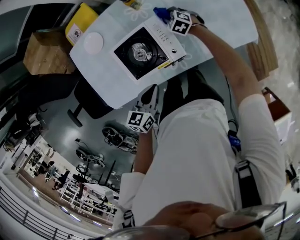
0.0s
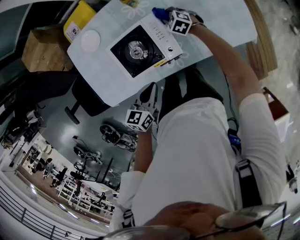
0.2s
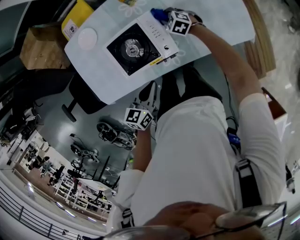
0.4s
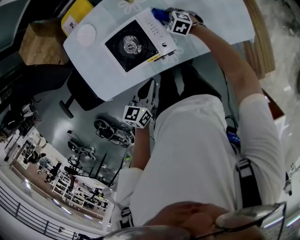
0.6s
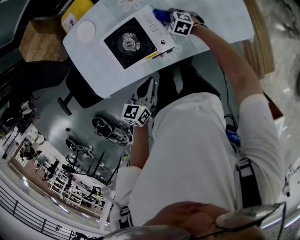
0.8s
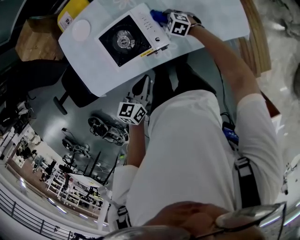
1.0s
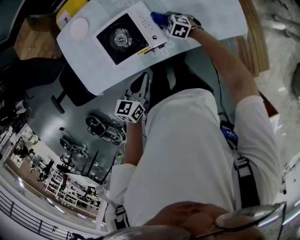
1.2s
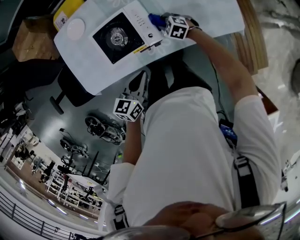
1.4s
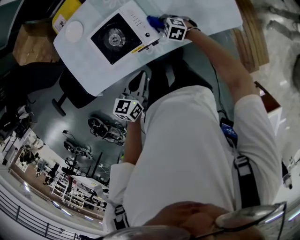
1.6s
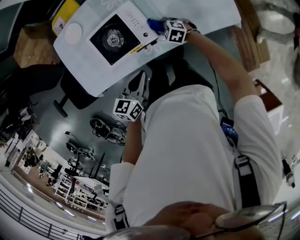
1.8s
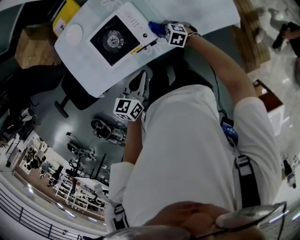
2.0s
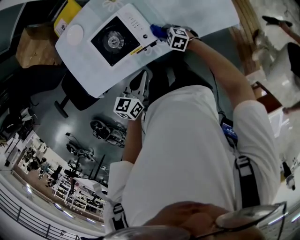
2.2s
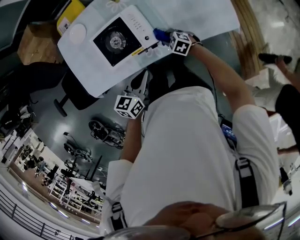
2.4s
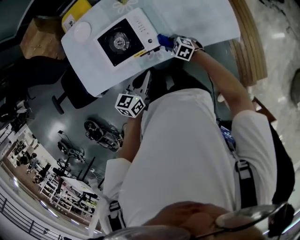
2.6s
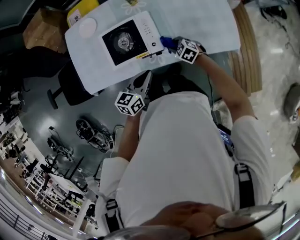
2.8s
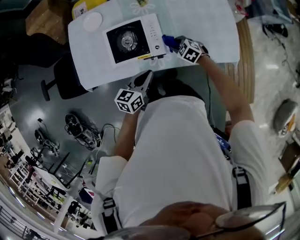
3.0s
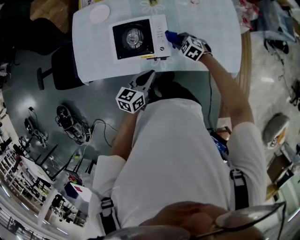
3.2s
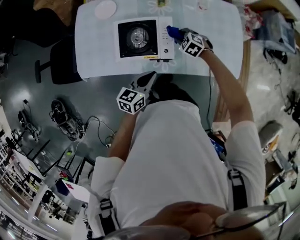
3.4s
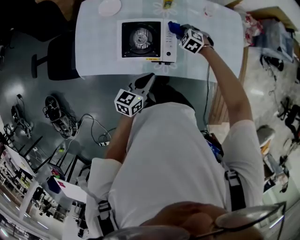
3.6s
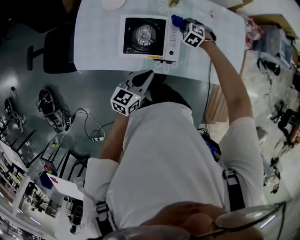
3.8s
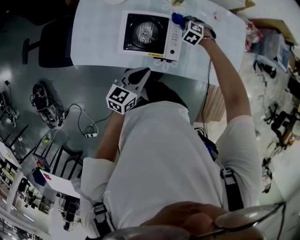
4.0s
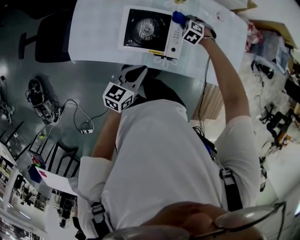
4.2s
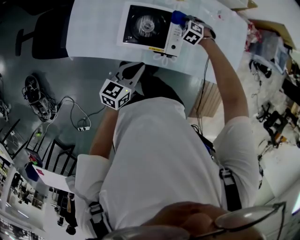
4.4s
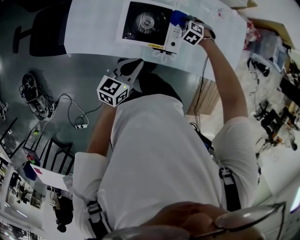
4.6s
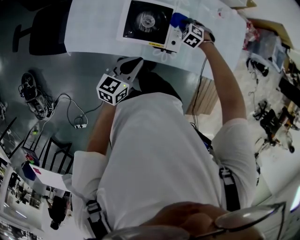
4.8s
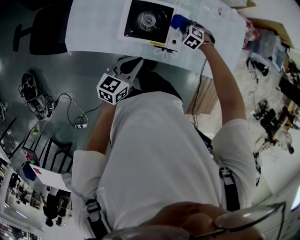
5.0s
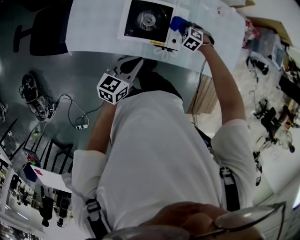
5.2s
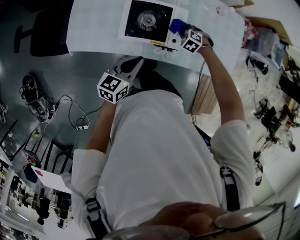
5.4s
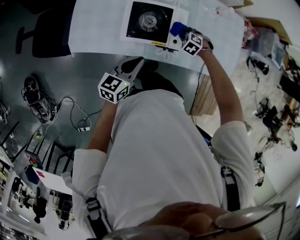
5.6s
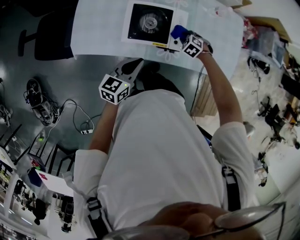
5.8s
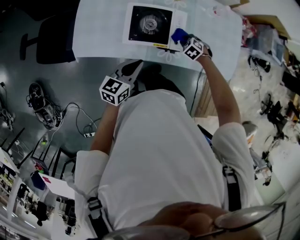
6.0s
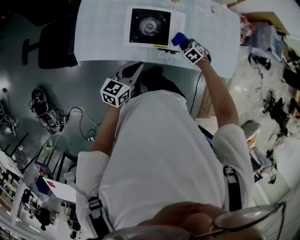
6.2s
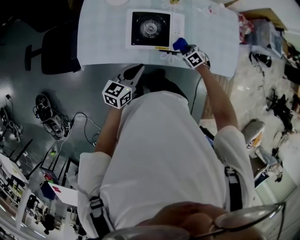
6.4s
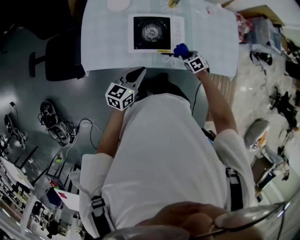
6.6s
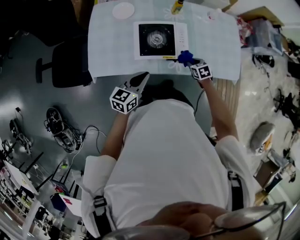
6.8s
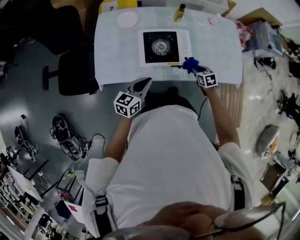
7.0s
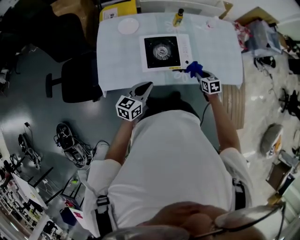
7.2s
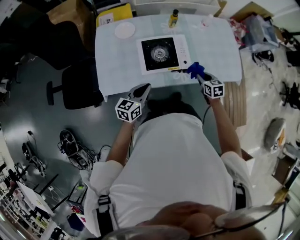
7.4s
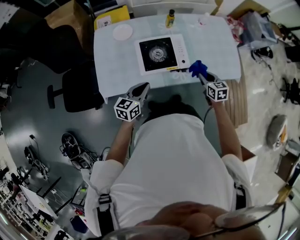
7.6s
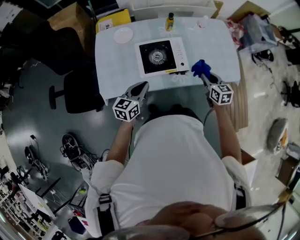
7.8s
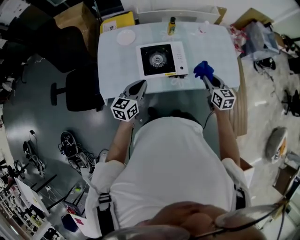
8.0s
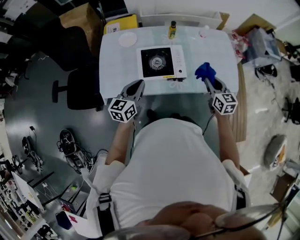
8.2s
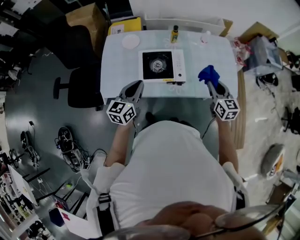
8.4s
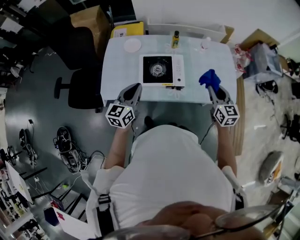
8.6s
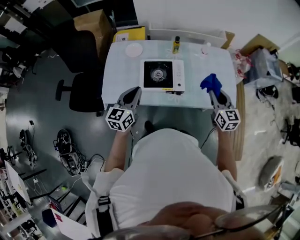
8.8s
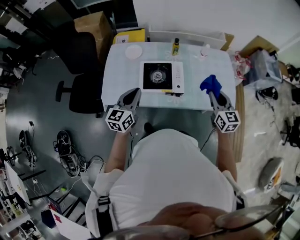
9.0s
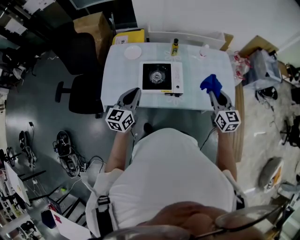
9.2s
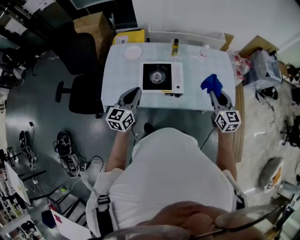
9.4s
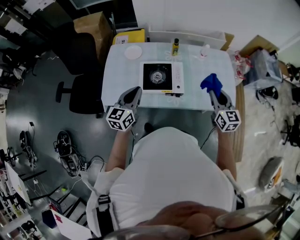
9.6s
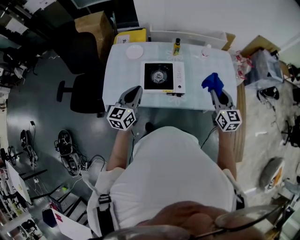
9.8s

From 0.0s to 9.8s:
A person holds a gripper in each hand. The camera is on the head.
From 0.0s to 1.4s: The right gripper moves backward, roughly 15 cm. The left gripper travels to the right by about 5 cm.
From 1.4s to 2.8s: The right gripper heads backward, covering some 10 cm.
From 2.8s to 4.2s: The right gripper heads forward, covering roughly 20 cm, and changes its angle by about 40 degrees. Meanwhile the left gripper goes approximately 10 cm to the left.
From 4.2s to 5.6s: The right gripper shifts by about 10 cm.
From 5.6s to 7.0s: The left gripper shifts by roughly 5 cm; the right gripper shifts by approximately 15 cm, and rolls clockwise, seen from behind, by some 60 degrees.
From 7.0s to 8.4s: The left gripper heads upward, covering about 10 cm, while the right gripper moves upward, about 25 cm, and points its fingers roughly 40 degrees further upward.
From 8.4s to 9.8s: The right gripper travels upward by approximately 5 cm.

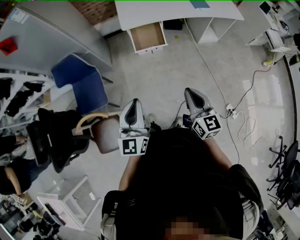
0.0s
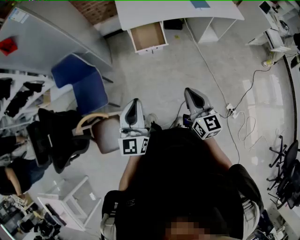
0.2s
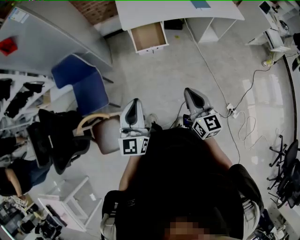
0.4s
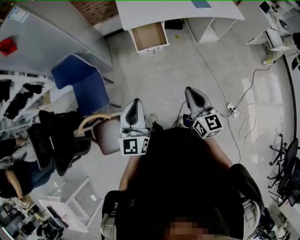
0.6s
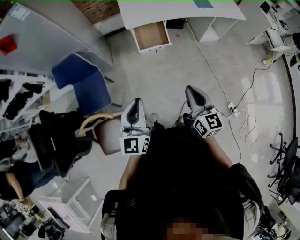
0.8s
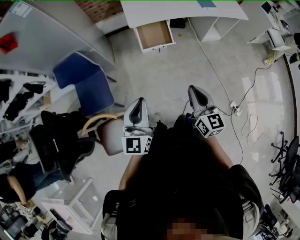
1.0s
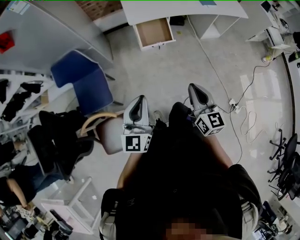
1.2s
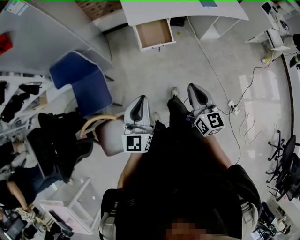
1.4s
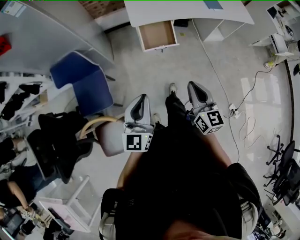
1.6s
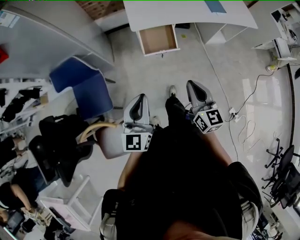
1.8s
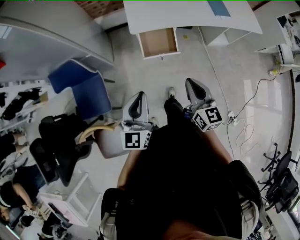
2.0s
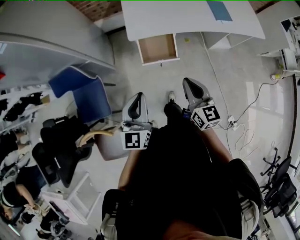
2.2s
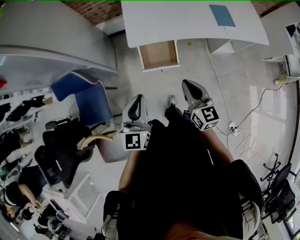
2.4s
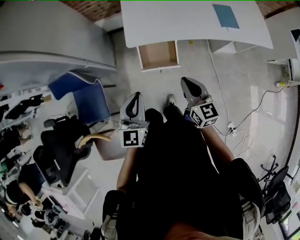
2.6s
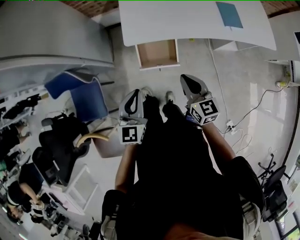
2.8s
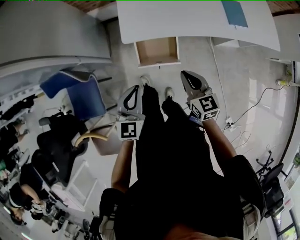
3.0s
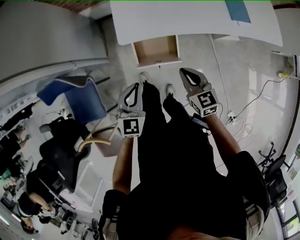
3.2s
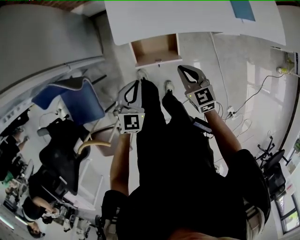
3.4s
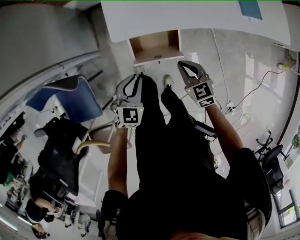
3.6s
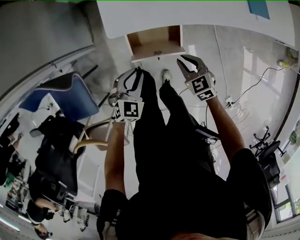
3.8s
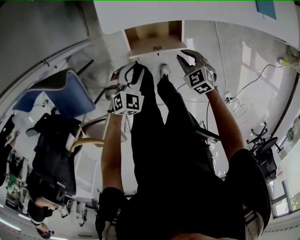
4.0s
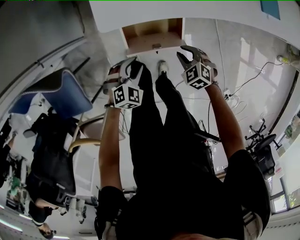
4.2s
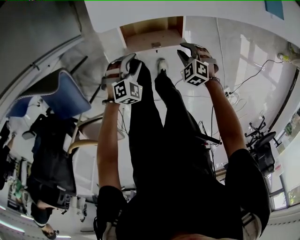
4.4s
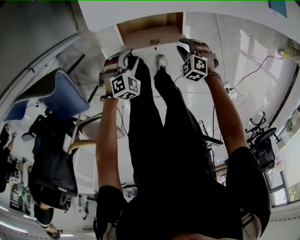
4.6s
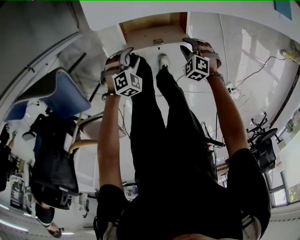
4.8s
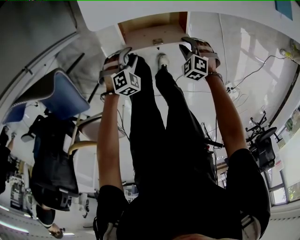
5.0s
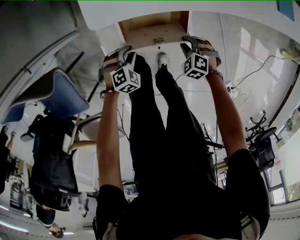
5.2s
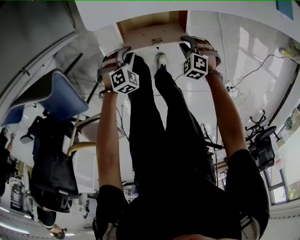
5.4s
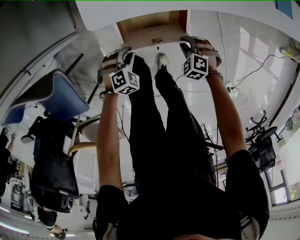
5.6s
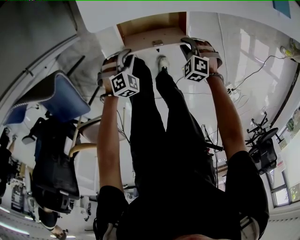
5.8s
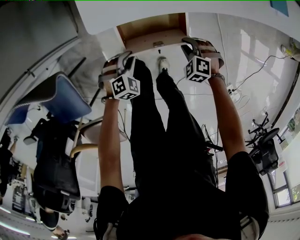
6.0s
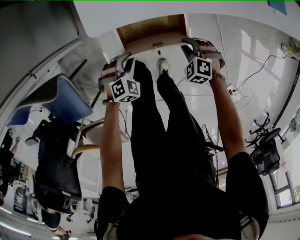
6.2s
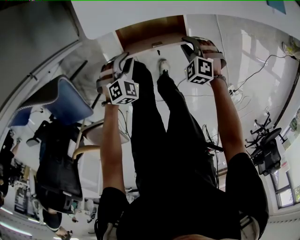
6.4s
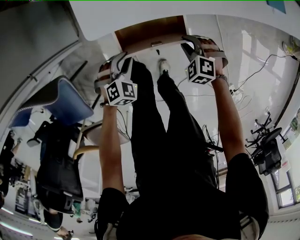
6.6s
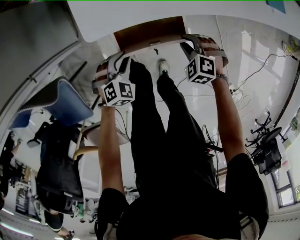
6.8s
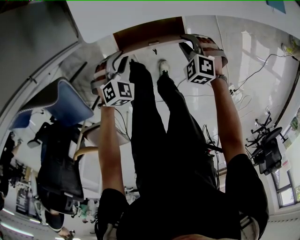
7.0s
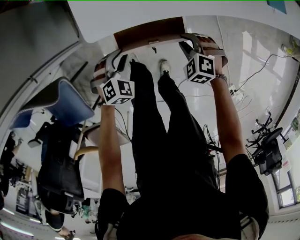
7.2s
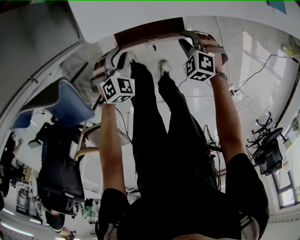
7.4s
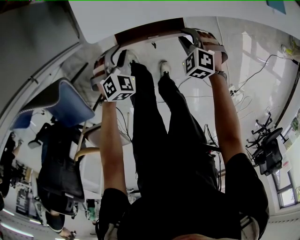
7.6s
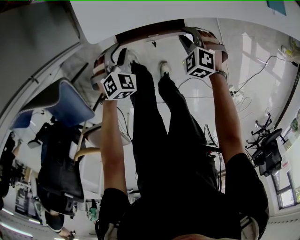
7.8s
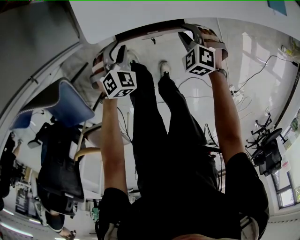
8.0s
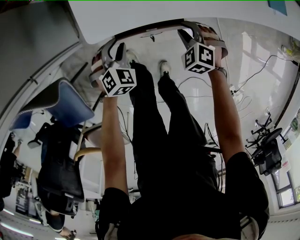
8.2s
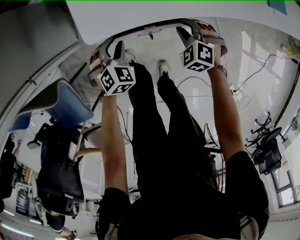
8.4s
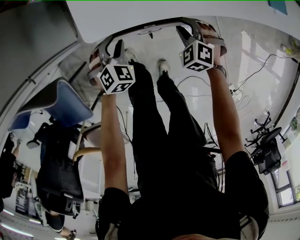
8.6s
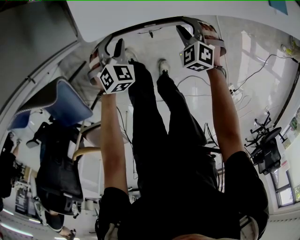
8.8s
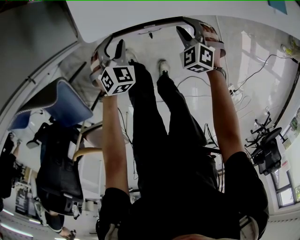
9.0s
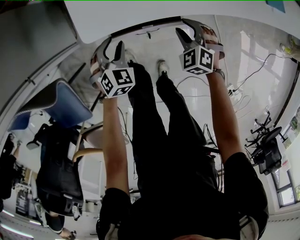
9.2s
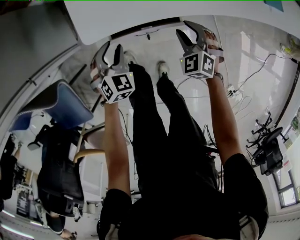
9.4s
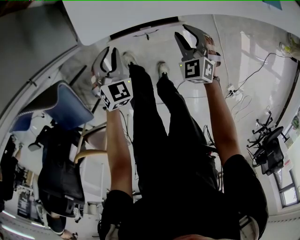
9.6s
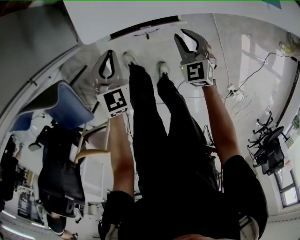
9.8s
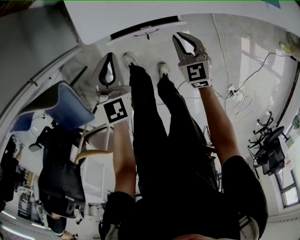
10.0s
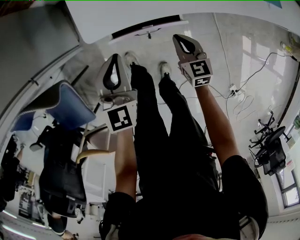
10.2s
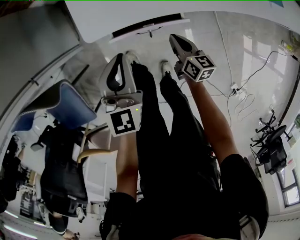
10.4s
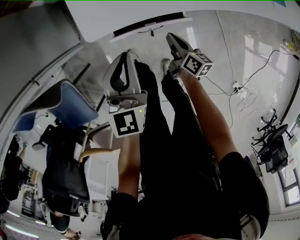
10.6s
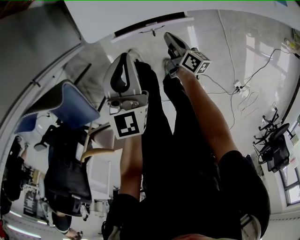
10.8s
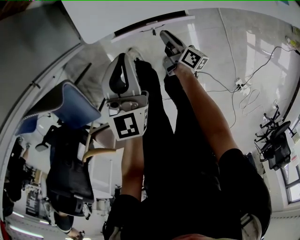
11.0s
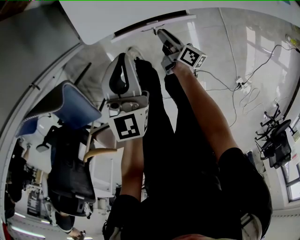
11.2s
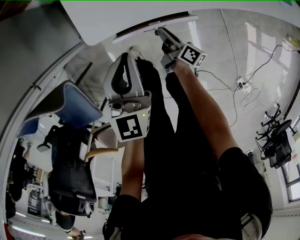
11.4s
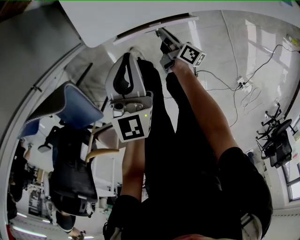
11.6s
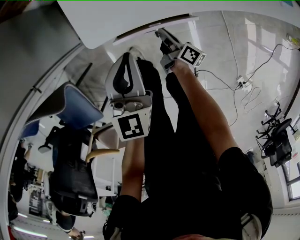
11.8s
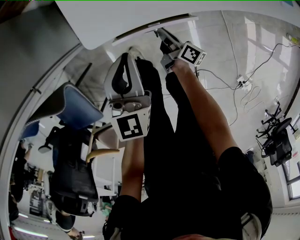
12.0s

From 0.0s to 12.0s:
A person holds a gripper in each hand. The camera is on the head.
From 0.0s to 1.6s: The two grippers go some 10 cm forward and to the left.
From 1.6s to 3.0s: Both grippers move forward, about 30 cm. The right gripper swivels roughly 20 degrees.
From 3.0s to 4.4s: The grippers both shift downward by some 35 cm. The left gripper tips its fingers downward by about 40 degrees, and opens; the right gripper angles its fingers downward, by about 40 degrees, and opens up.
From 6.0s to 7.6s: The two grippers go approximately 10 cm forward and upward.
From 7.6s to 9.0s: The grippers stay close to where they were, moving slightly.
From 9.0s to 10.4s: The left gripper is displaced upward by approximately 15 cm, points its fingers about 30 degrees further upward, and closes. Meanwhile the right gripper changes place by approximately 5 cm, rolls clockwise, seen from behind, by roughly 80 degrees, and closes up.
From 10.4s to 12.0s: The right gripper travels downward and to the left by roughly 10 cm, and rotates roughly 40 degrees.

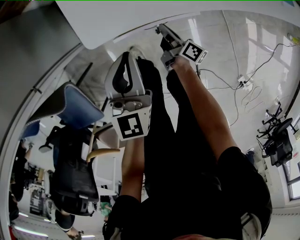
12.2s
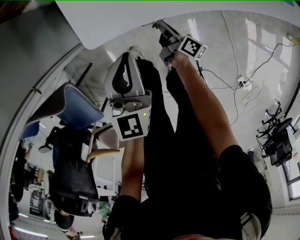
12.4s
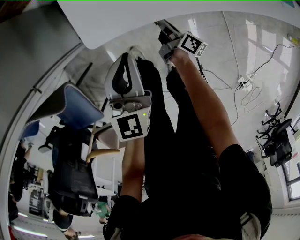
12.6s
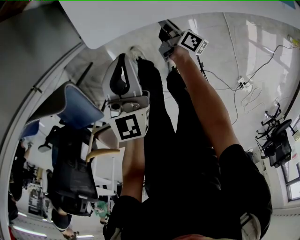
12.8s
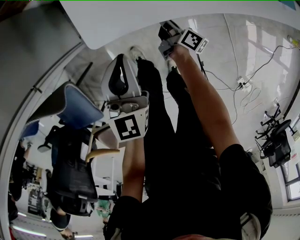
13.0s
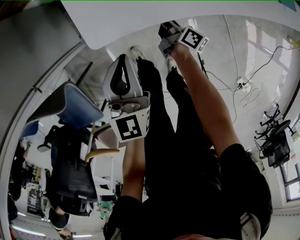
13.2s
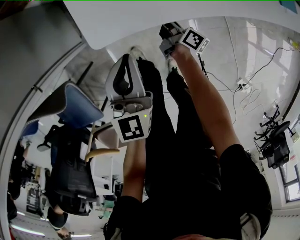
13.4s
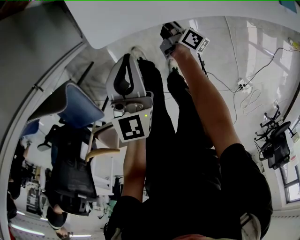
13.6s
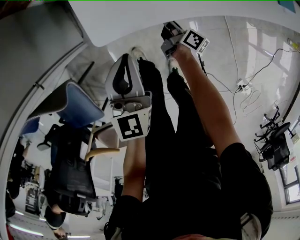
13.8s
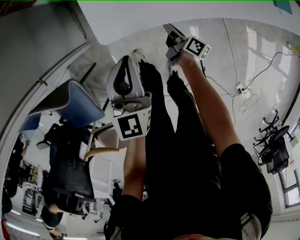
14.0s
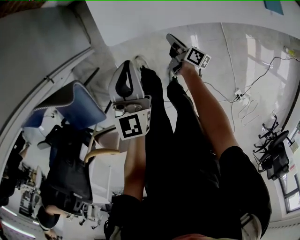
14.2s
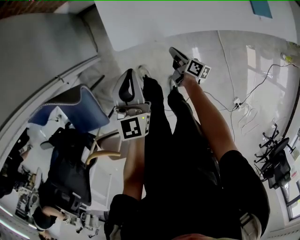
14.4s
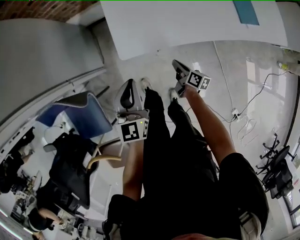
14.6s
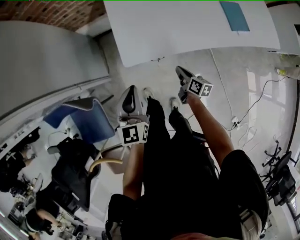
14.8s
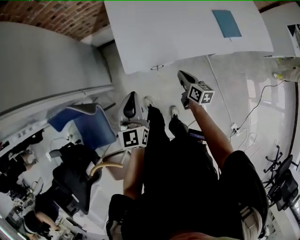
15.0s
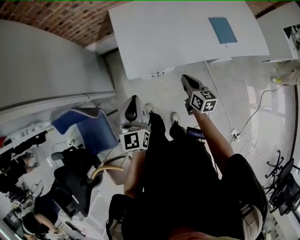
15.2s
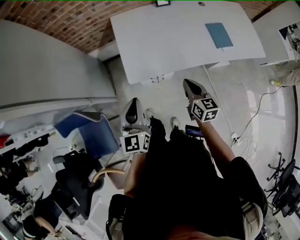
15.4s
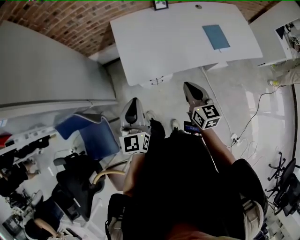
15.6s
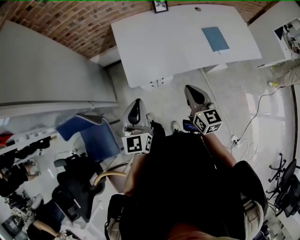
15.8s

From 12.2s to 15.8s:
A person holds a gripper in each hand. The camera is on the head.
From 14.0s to 15.8s: The left gripper heads upward, covering about 25 cm, while the right gripper travels upward by roughly 50 cm, and twists about 60 degrees counterclockwise, seen from behind.
